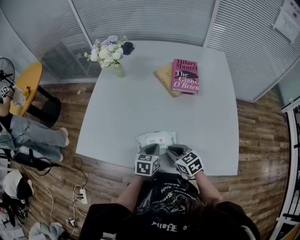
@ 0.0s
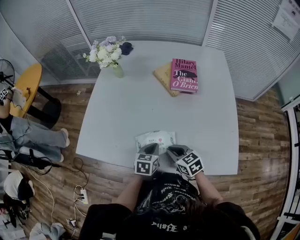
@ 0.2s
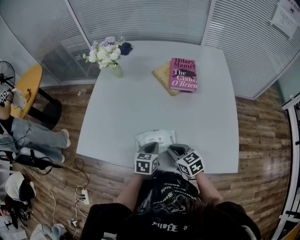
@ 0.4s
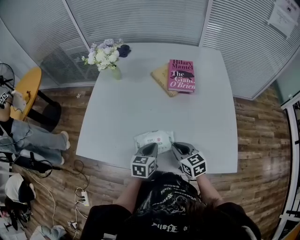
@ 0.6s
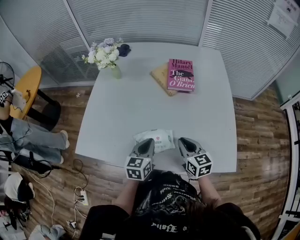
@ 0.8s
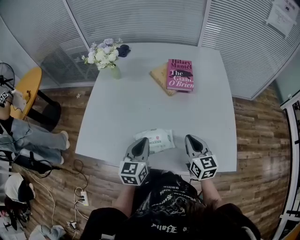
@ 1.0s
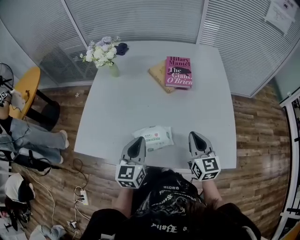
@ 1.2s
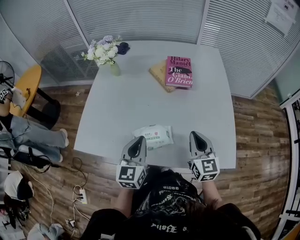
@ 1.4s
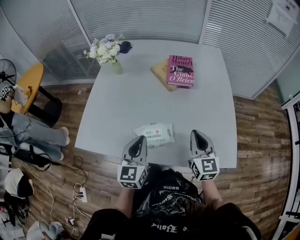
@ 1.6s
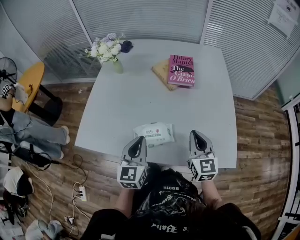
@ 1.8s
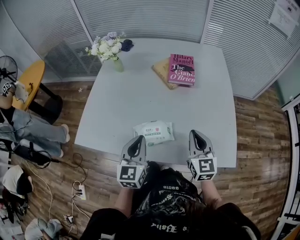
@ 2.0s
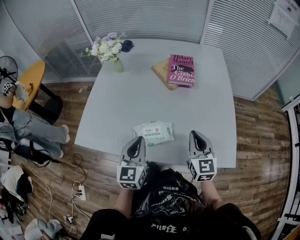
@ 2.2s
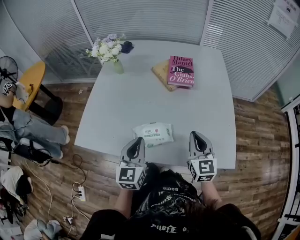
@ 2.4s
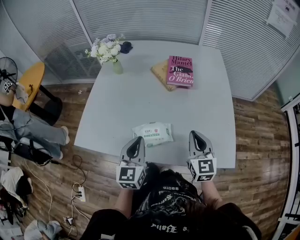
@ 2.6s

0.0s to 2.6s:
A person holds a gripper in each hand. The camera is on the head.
0.0s to 1.2s: The right gripper travels upward and to the right by roughly 20 cm, and changes its angle by roughly 40 degrees. The left gripper shifts approximately 15 cm upward, and changes its angle by some 30 degrees.
1.2s to 2.6s: The grippers move only a little.

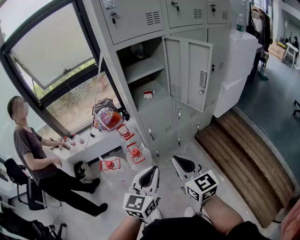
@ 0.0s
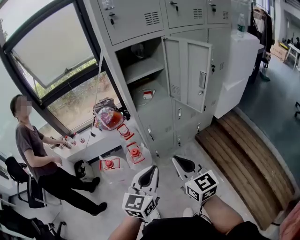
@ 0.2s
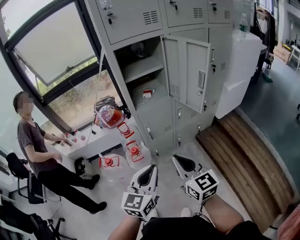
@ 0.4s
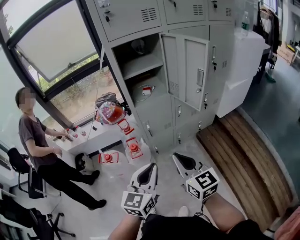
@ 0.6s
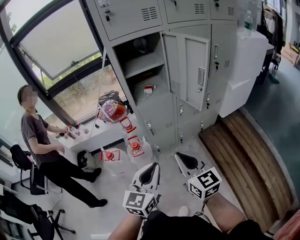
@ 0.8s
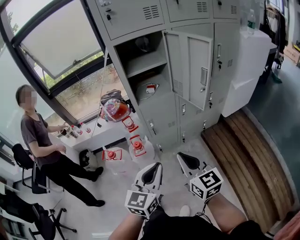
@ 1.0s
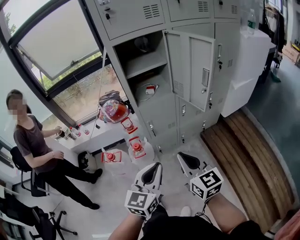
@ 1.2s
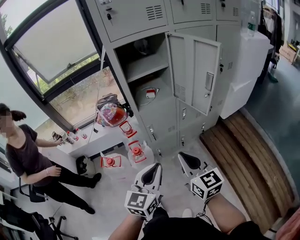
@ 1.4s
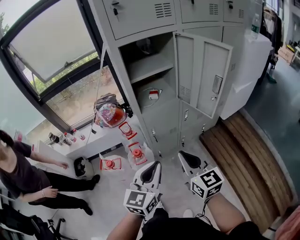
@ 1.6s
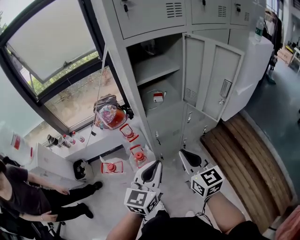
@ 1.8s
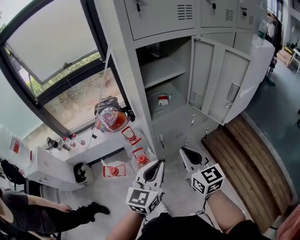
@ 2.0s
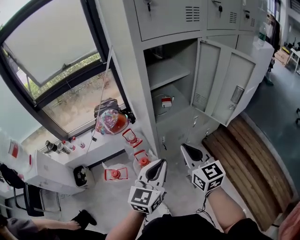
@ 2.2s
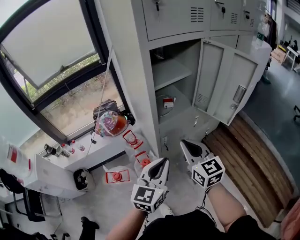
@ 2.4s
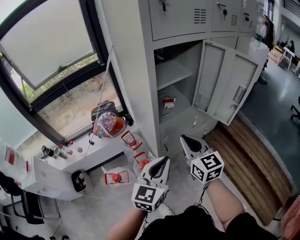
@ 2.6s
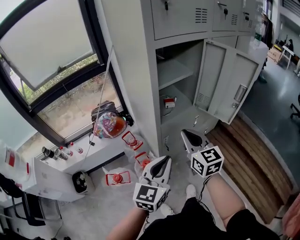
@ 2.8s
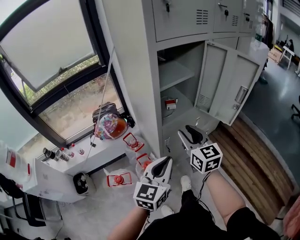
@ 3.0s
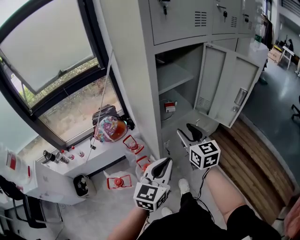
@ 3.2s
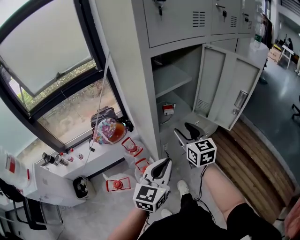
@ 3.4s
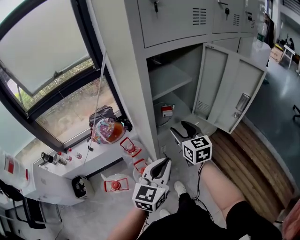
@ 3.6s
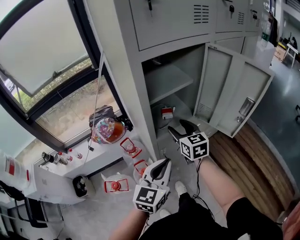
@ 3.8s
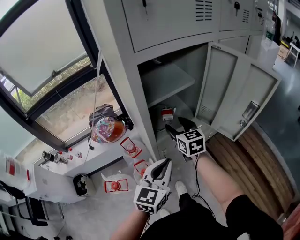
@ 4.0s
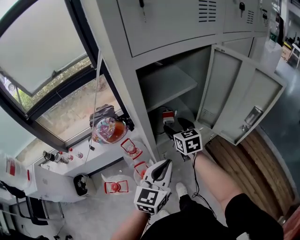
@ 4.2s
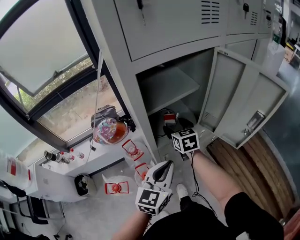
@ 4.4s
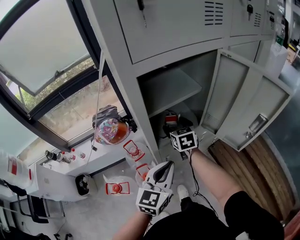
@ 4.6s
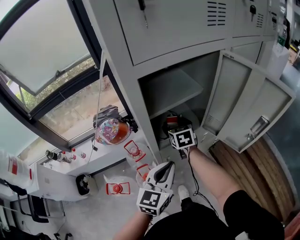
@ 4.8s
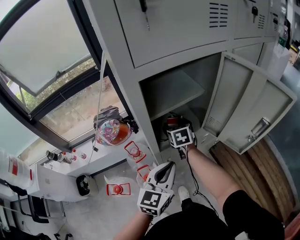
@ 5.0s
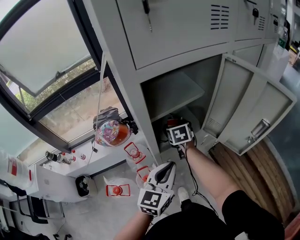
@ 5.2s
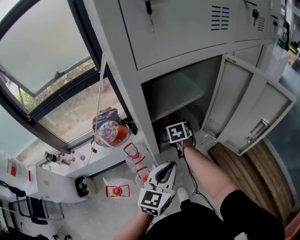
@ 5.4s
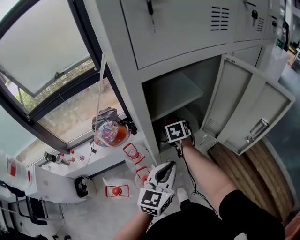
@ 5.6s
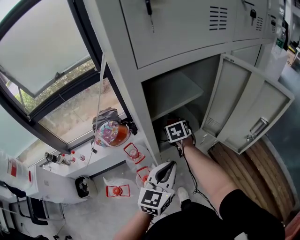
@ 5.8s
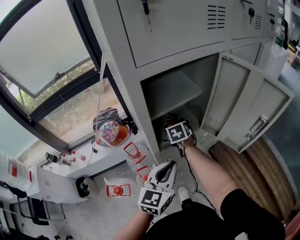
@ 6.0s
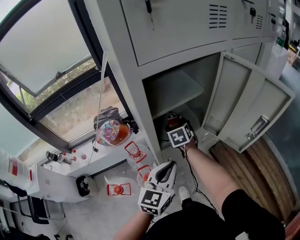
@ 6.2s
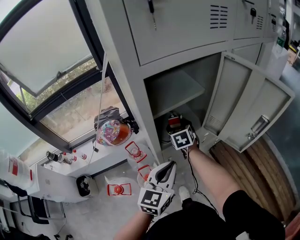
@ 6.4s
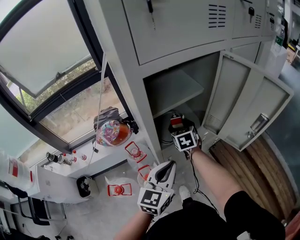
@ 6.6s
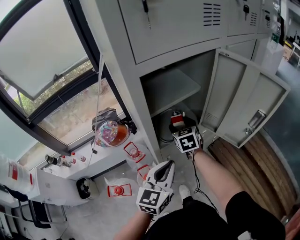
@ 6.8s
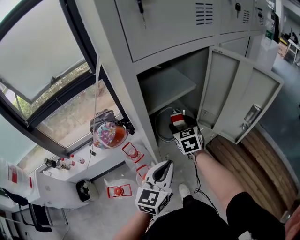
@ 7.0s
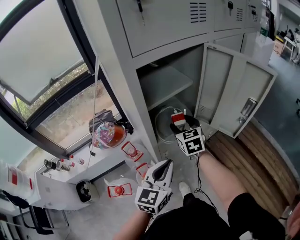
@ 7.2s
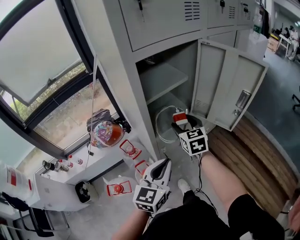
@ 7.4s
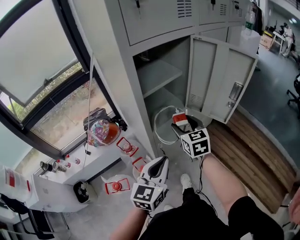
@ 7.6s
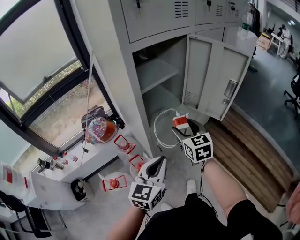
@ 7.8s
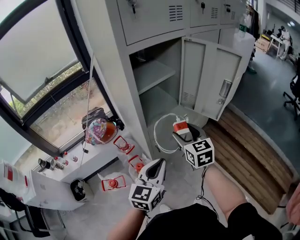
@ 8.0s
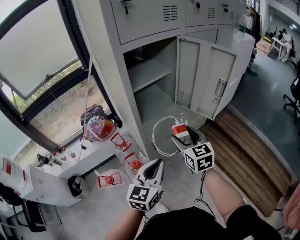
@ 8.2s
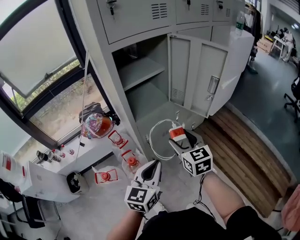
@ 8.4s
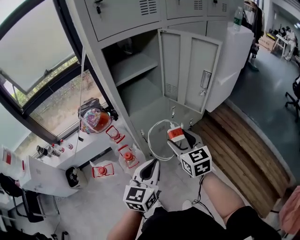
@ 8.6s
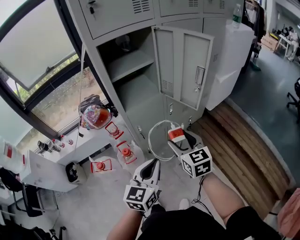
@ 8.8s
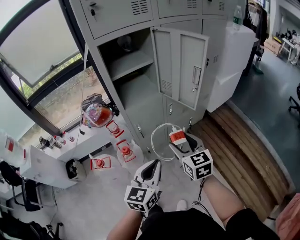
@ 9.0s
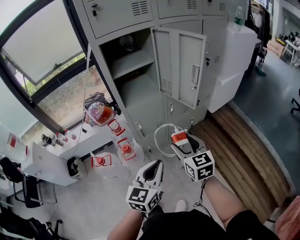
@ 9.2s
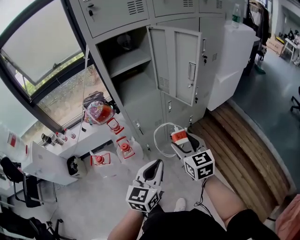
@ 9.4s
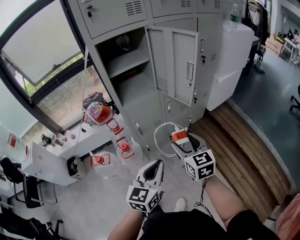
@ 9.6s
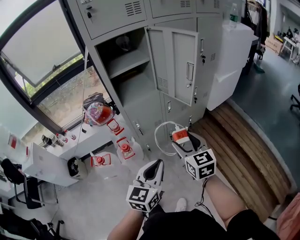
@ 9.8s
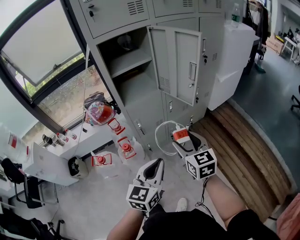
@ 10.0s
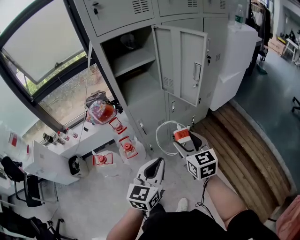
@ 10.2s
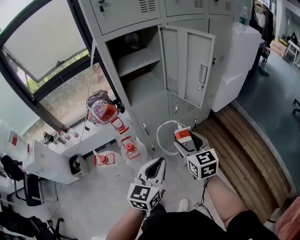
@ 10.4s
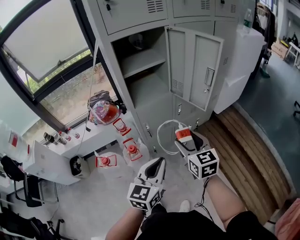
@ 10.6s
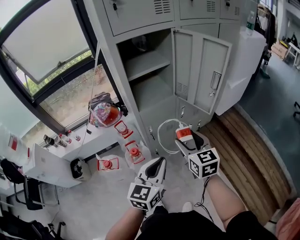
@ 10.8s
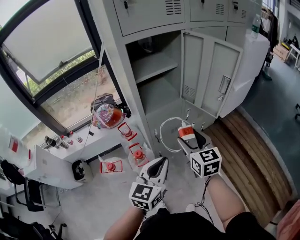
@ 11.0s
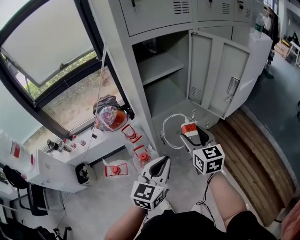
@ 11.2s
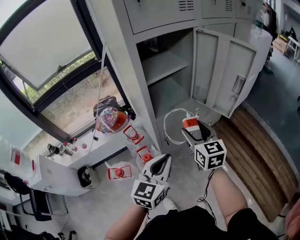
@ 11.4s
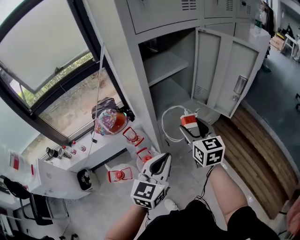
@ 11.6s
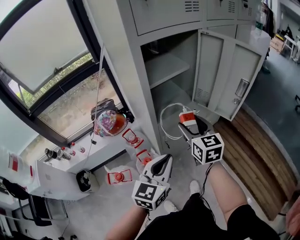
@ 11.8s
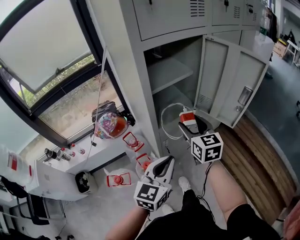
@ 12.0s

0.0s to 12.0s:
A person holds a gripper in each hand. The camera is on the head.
0.0s to 1.6s: The grippers both shift forward by some 10 cm.
1.6s to 3.0s: The left gripper travels to the left and forward by about 15 cm; the right gripper is displaced forward and to the left by about 20 cm.
3.0s to 4.4s: The right gripper heads forward and downward, covering approximately 25 cm, and opens. Meanwhile the left gripper moves forward, approximately 10 cm.
4.4s to 6.0s: The right gripper changes place by about 5 cm, and rotates some 20 degrees.
6.0s to 7.6s: The right gripper is displaced backward, upward and to the right by some 20 cm, and swivels roughly 30 degrees, while the left gripper is displaced backward by roughly 10 cm.
7.6s to 9.0s: The right gripper goes approximately 25 cm backward and to the right, while the left gripper is displaced to the right and backward by some 20 cm.
9.0s to 10.4s: There are only small adjustments of the grippers.
10.4s to 12.0s: The left gripper moves to the left and forward, approximately 20 cm, while the right gripper heads forward and to the left, covering about 25 cm.

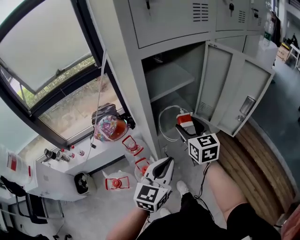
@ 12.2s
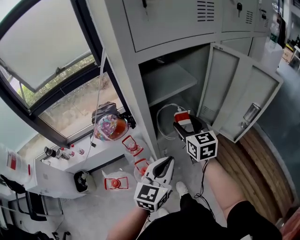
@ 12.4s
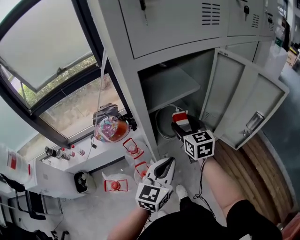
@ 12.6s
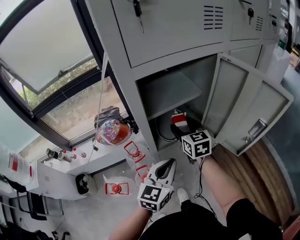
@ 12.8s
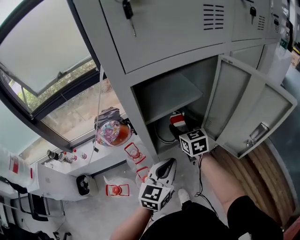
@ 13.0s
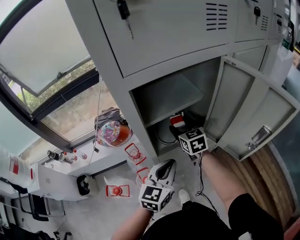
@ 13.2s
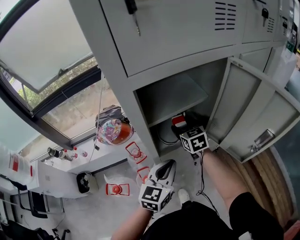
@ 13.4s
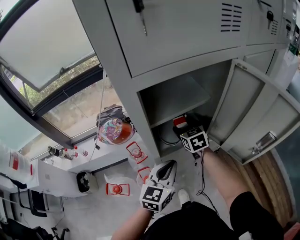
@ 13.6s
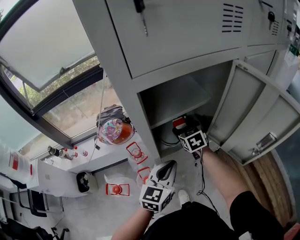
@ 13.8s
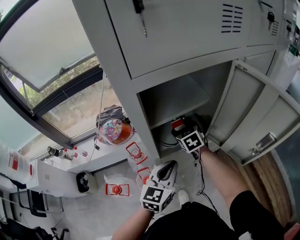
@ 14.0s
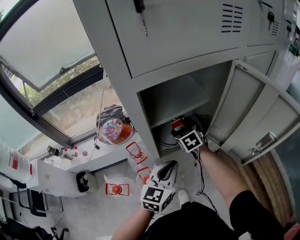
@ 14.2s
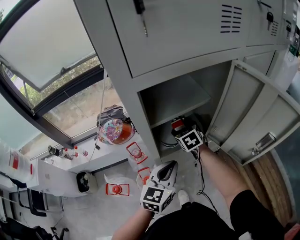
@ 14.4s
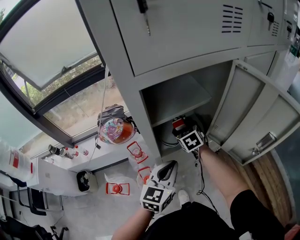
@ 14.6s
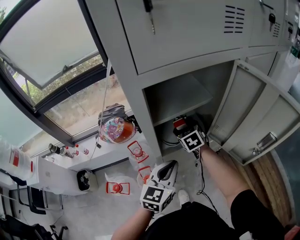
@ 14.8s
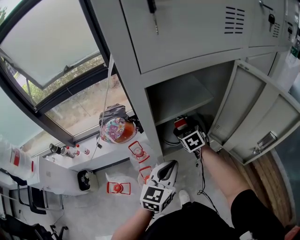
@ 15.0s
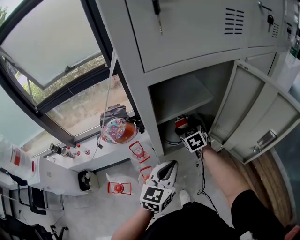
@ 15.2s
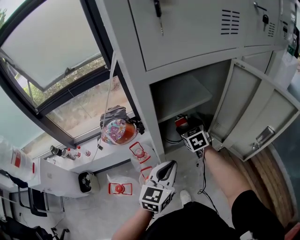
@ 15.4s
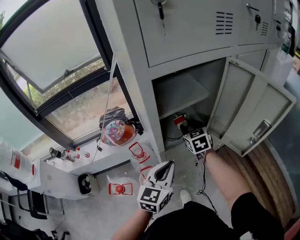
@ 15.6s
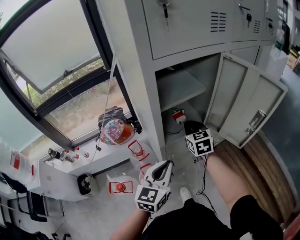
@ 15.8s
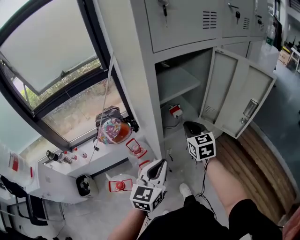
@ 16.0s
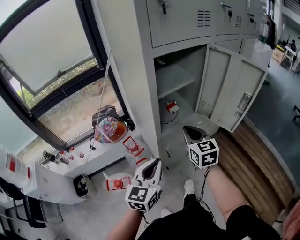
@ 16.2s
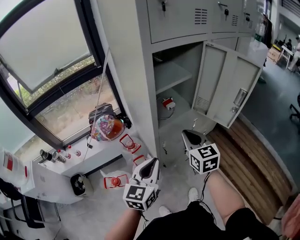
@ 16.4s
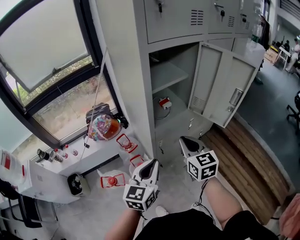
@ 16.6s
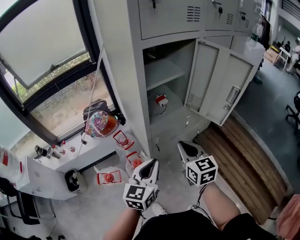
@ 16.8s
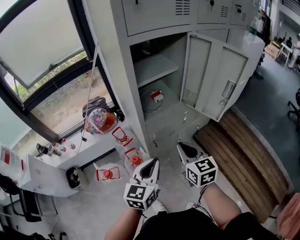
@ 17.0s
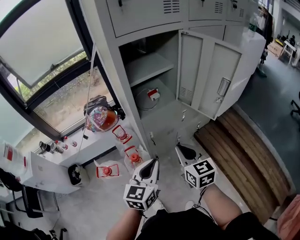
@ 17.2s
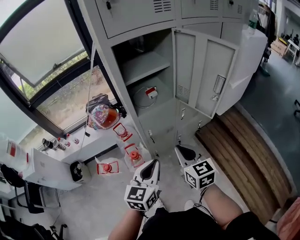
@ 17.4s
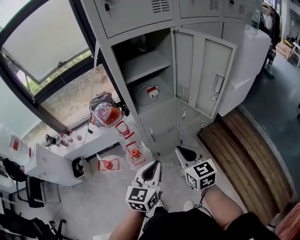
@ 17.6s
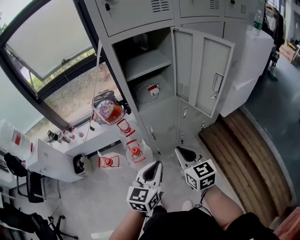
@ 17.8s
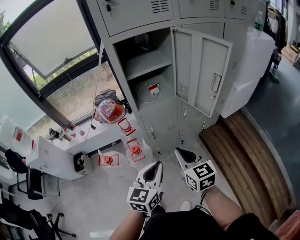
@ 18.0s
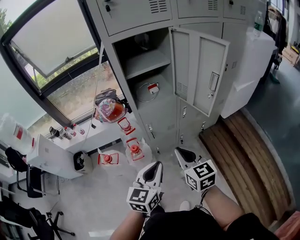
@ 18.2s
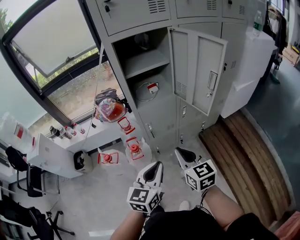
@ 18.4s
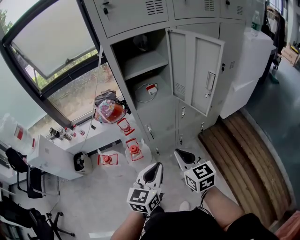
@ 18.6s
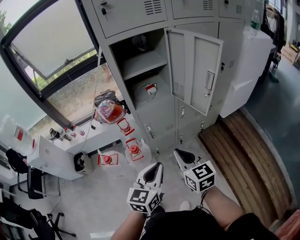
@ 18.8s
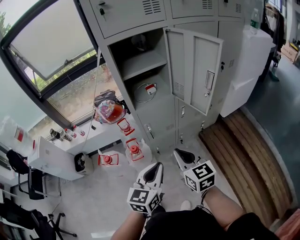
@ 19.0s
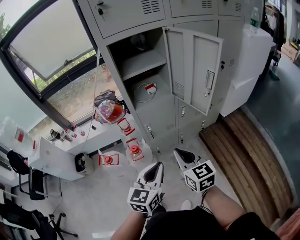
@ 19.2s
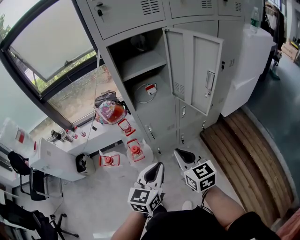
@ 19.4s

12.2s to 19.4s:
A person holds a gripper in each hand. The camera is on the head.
12.2s to 13.6s: The right gripper goes approximately 20 cm forward and downward, and rotates about 20 degrees. Meanwhile the left gripper travels forward by approximately 10 cm.
13.6s to 15.0s: There are only small adjustments of the grippers.
15.0s to 16.6s: The left gripper is displaced backward by roughly 15 cm. The right gripper travels backward by roughly 30 cm, changes its angle by roughly 30 degrees, and closes its fingers.
16.6s to 18.0s: The right gripper is displaced backward and to the right by approximately 15 cm, while the left gripper shifts about 20 cm to the right and backward.
18.0s to 19.4s: The grippers stay close to where they were, moving slightly.

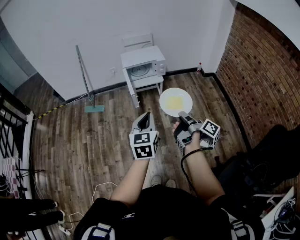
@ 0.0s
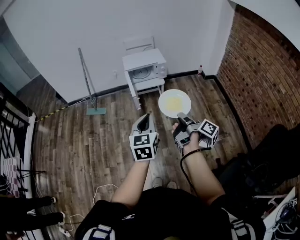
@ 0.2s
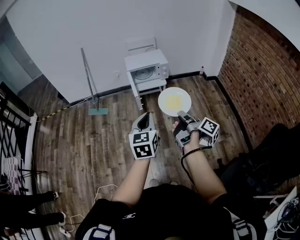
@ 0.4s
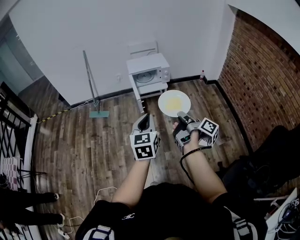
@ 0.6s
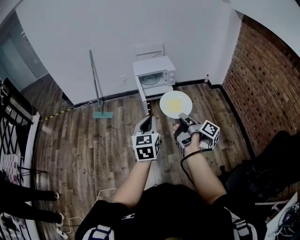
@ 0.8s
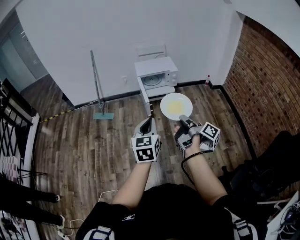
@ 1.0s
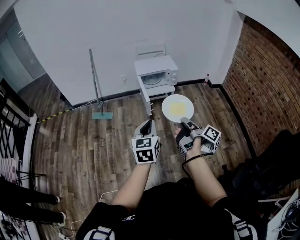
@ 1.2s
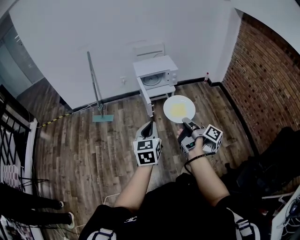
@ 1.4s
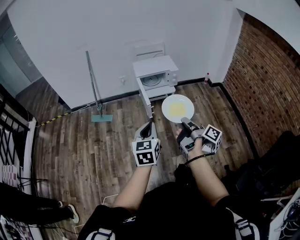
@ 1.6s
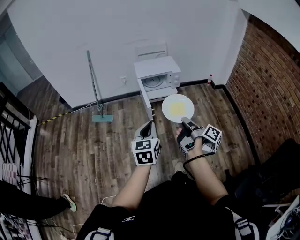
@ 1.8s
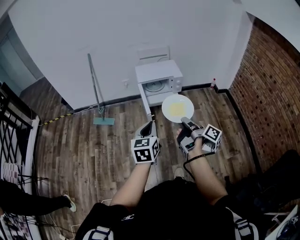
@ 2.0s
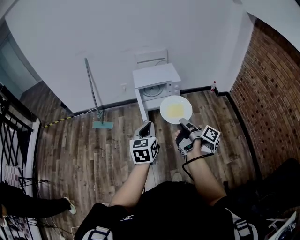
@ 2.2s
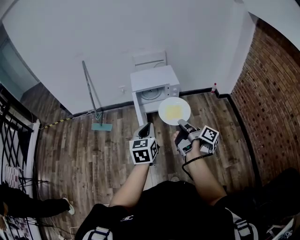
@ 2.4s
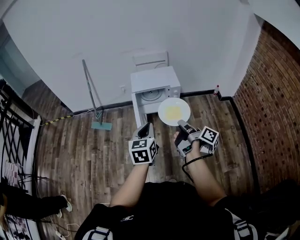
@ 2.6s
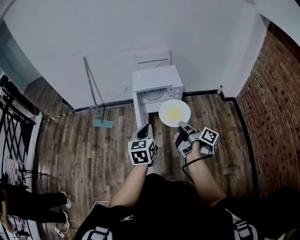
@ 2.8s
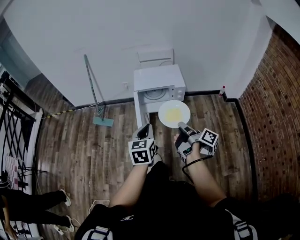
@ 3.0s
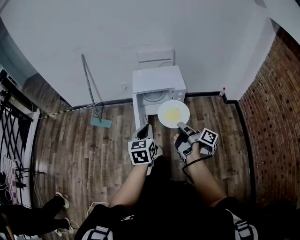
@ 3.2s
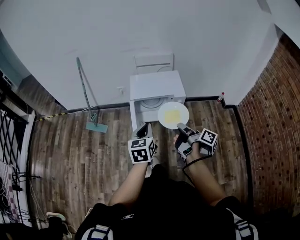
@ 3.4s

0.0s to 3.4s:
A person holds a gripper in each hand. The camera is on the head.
0.0s to 1.6s: The left gripper moves about 15 cm.
1.6s to 3.4s: The left gripper changes place by about 40 cm.
